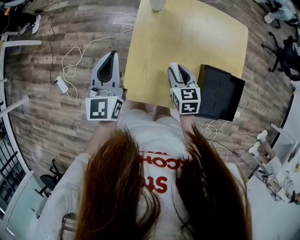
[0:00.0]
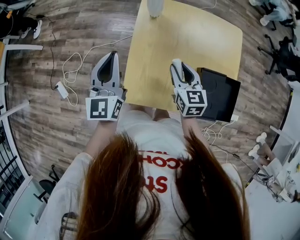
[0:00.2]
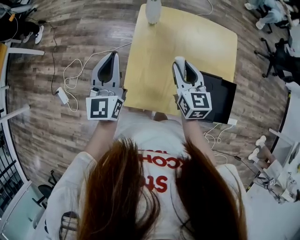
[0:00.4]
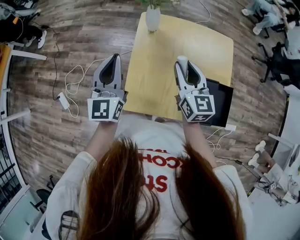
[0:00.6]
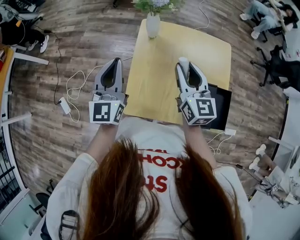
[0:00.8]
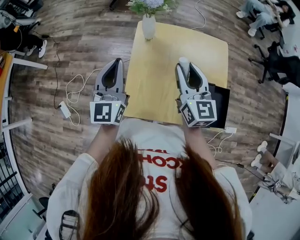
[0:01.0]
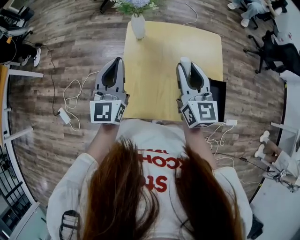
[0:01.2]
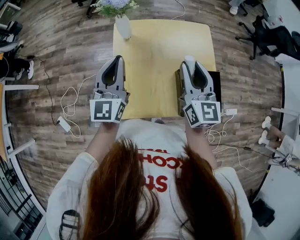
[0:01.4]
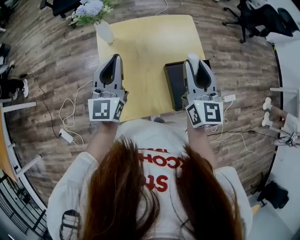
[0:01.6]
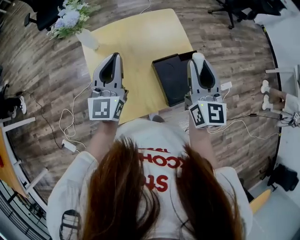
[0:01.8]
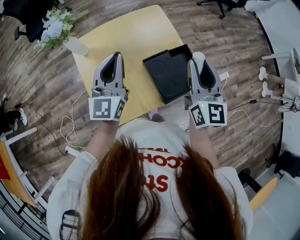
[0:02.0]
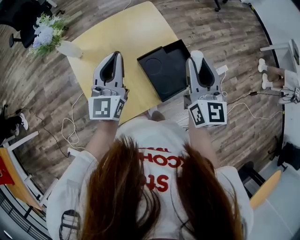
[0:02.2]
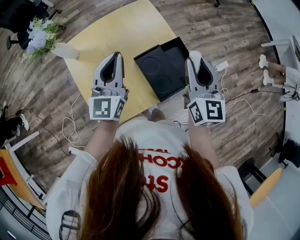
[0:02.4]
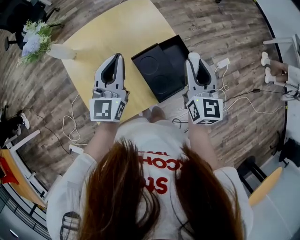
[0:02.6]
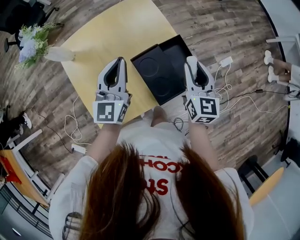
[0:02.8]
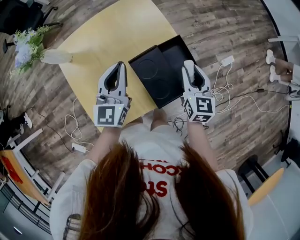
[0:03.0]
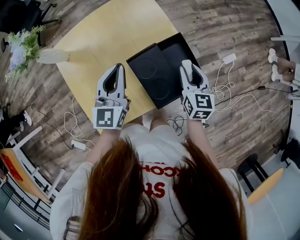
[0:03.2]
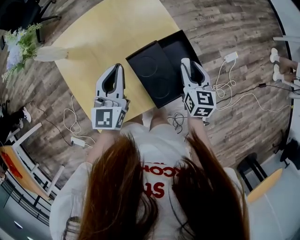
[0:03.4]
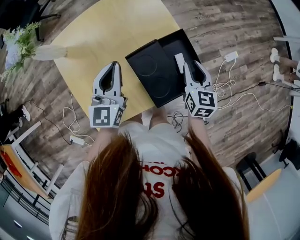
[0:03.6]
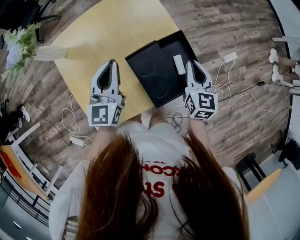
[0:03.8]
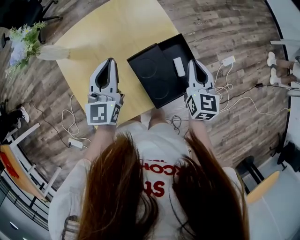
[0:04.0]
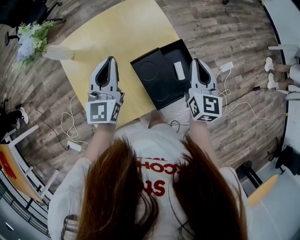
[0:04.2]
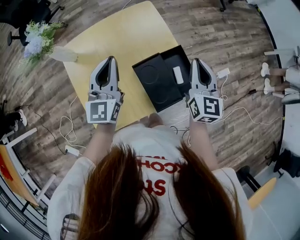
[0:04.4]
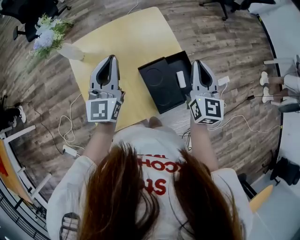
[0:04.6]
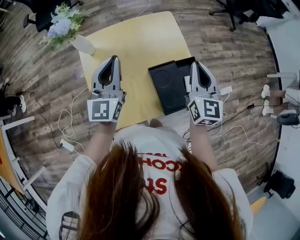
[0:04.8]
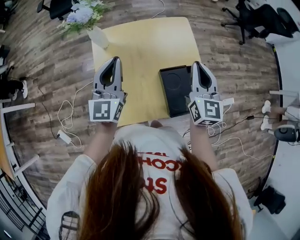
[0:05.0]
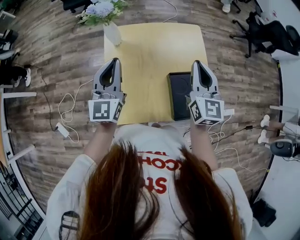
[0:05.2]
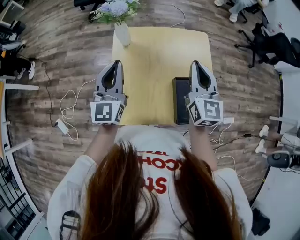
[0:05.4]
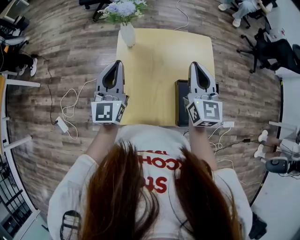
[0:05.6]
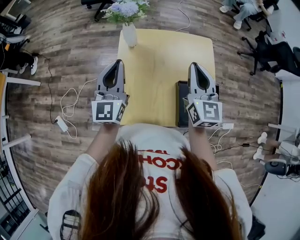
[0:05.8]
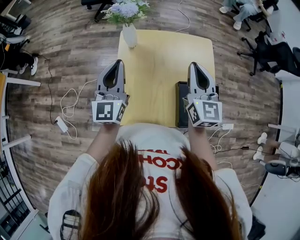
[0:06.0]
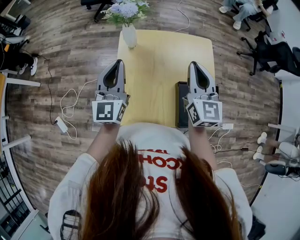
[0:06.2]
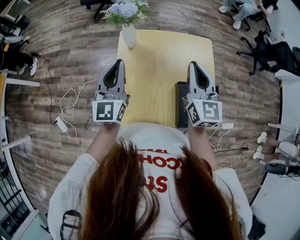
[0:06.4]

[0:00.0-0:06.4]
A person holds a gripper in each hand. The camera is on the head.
0.0 to 1.6 s: The right gripper is displaced upward by roughly 25 cm, and tilts its fingers some 40 degrees upward, while the left gripper ends up approximately 15 cm from where it was, and swivels about 30 degrees.
1.6 to 3.2 s: The left gripper travels to the right and downward by about 20 cm, and rotates some 20 degrees; the right gripper shifts some 25 cm downward and to the right, and swivels approximately 30 degrees.
3.2 to 4.8 s: The right gripper heads upward, covering some 15 cm, changes its angle by about 20 degrees, and closes up, while the left gripper shifts approximately 15 cm upward and to the left.
4.8 to 6.4 s: The right gripper goes about 15 cm to the left and forward, and turns by some 20 degrees, while the left gripper travels to the left by some 15 cm.

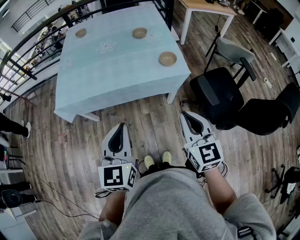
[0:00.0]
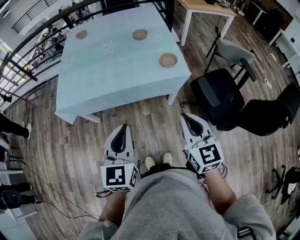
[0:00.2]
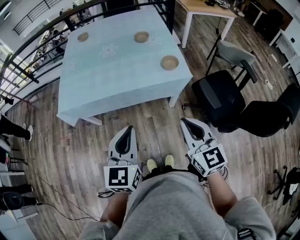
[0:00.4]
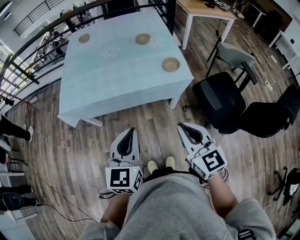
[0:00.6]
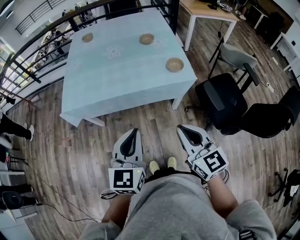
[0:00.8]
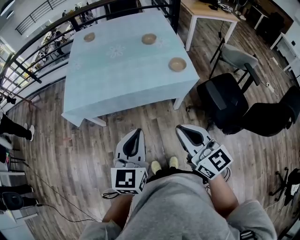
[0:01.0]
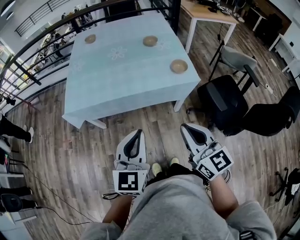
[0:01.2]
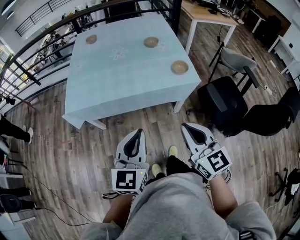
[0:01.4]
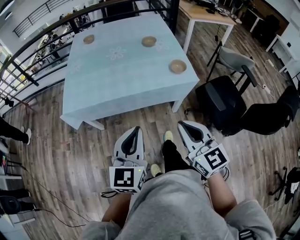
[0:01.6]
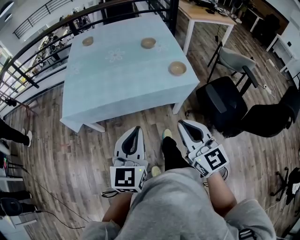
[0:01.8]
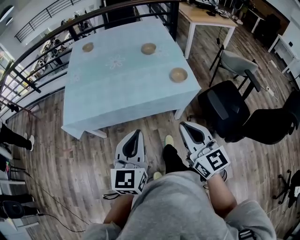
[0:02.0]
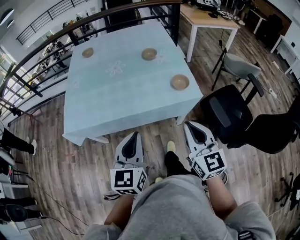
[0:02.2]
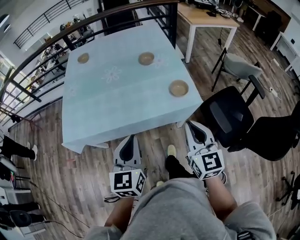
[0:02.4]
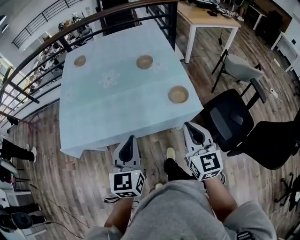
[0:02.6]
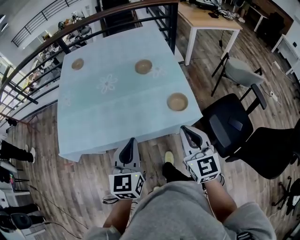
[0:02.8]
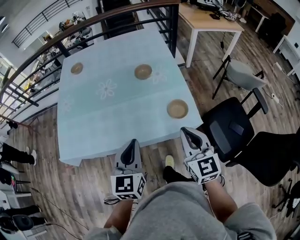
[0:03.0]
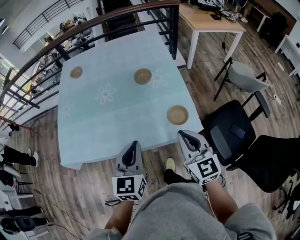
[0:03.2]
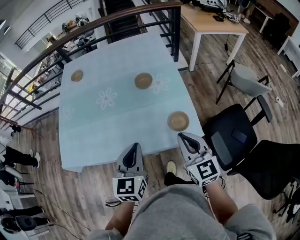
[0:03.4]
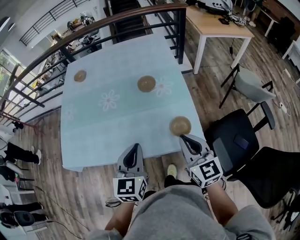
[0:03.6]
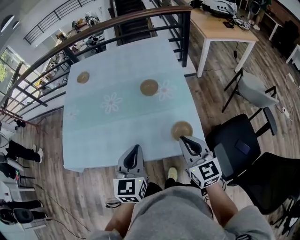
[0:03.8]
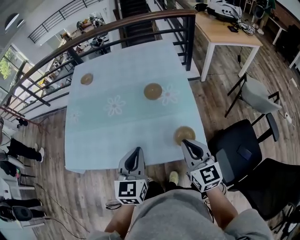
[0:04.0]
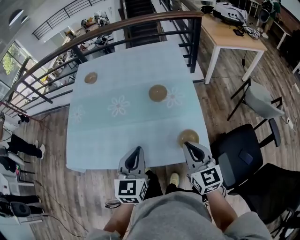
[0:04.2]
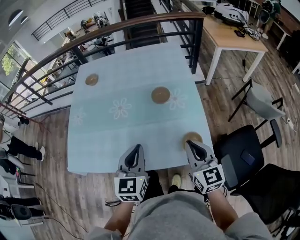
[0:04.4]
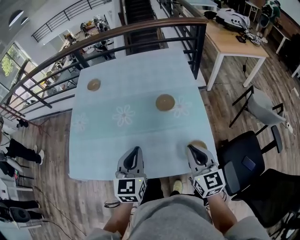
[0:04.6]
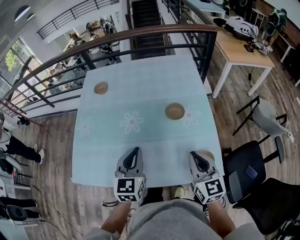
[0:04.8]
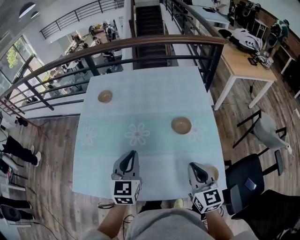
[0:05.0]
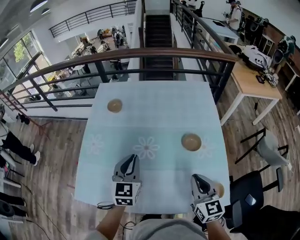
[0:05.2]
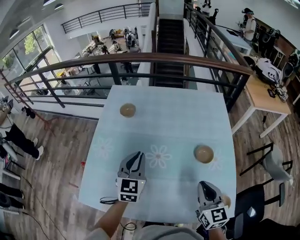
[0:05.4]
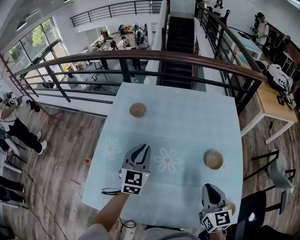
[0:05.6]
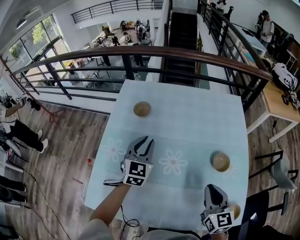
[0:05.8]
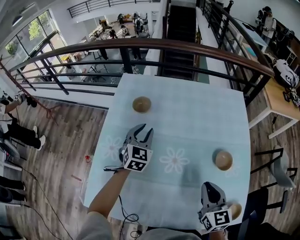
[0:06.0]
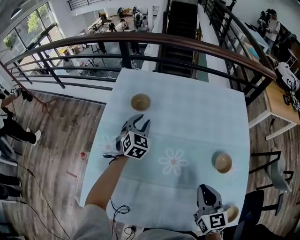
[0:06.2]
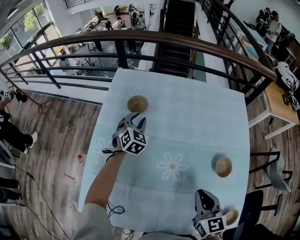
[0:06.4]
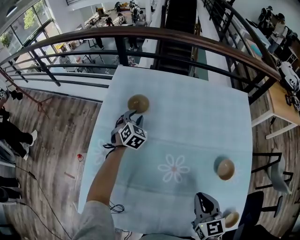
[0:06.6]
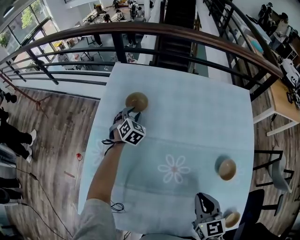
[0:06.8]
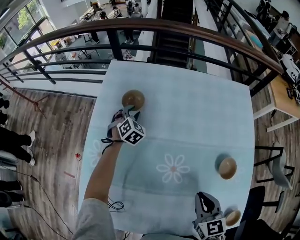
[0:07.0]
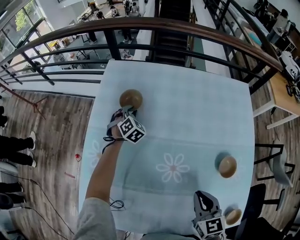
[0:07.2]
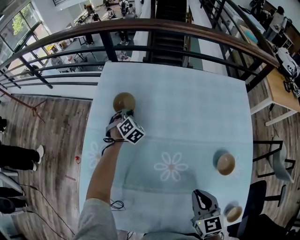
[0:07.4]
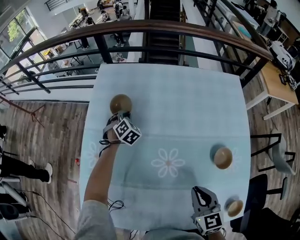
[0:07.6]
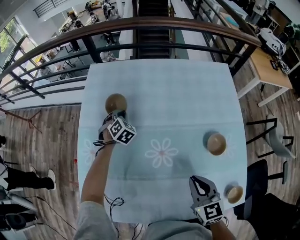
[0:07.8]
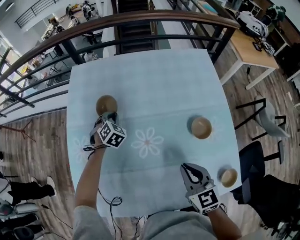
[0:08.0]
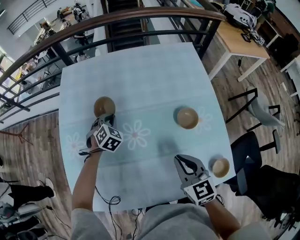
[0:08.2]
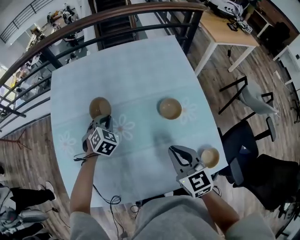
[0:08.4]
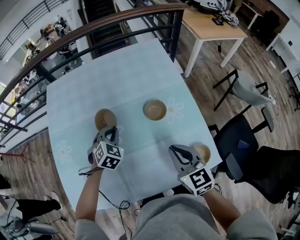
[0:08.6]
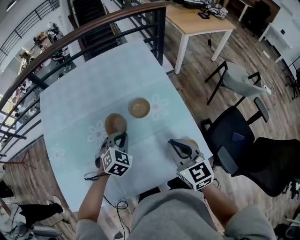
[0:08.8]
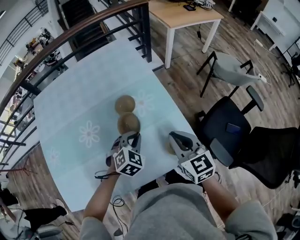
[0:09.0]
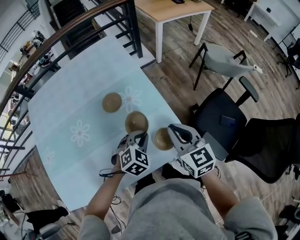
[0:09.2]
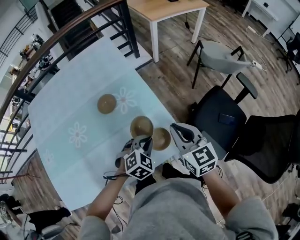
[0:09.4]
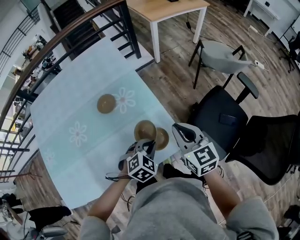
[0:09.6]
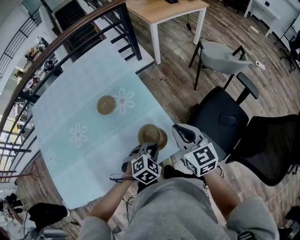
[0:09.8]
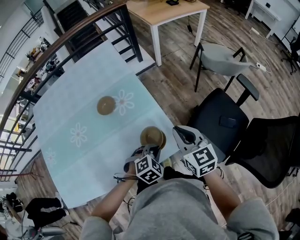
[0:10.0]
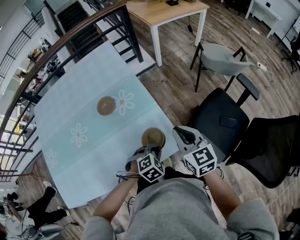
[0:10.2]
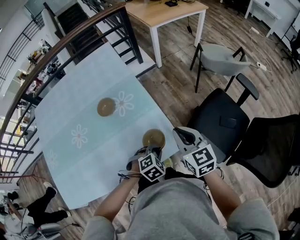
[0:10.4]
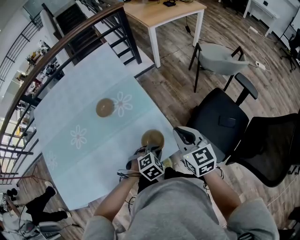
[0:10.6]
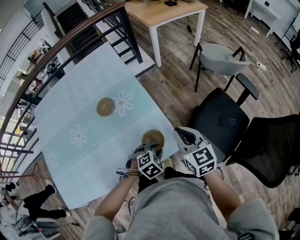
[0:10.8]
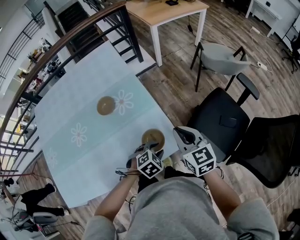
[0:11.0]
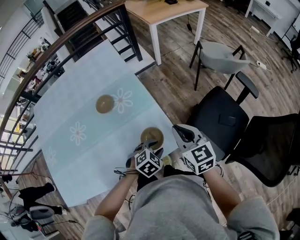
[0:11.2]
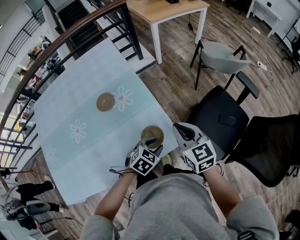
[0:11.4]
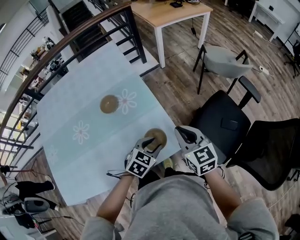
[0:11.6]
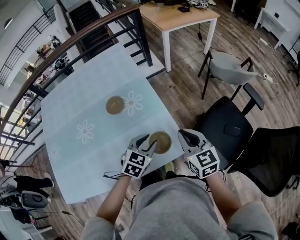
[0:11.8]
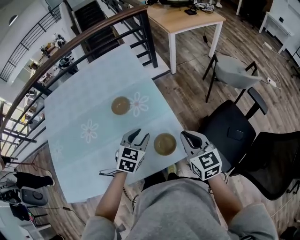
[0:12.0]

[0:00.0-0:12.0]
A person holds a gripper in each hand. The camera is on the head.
0.0 to 1.6 s: The right gripper heads to the left, covering about 10 cm.
1.6 to 3.0 s: Both grippers move forward, about 30 cm.
3.0 to 4.4 s: The grippers both shift forward by roughly 15 cm.
4.4 to 6.0 s: The right gripper heads forward and to the left, covering about 30 cm. The left gripper moves forward and to the left, roughly 50 cm, and opens up.
6.0 to 7.6 s: The right gripper heads downward, covering about 5 cm. The left gripper shifts approximately 20 cm downward and forward, rotates some 40 degrees, and closes.
7.6 to 9.0 s: The right gripper shifts by about 30 cm, and turns by roughly 20 degrees. The left gripper moves approximately 60 cm, and turns by some 40 degrees.
9.0 to 10.4 s: The right gripper travels to the right by approximately 15 cm, while the left gripper heads to the right, downward and backward, covering about 25 cm, and rotates about 20 degrees.
10.4 to 12.0 s: The left gripper goes about 20 cm to the left, upward and forward, rotates roughly 40 degrees, and opens.

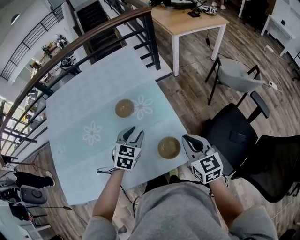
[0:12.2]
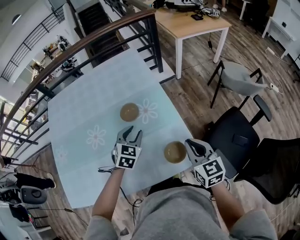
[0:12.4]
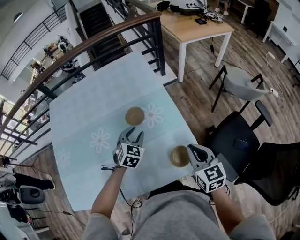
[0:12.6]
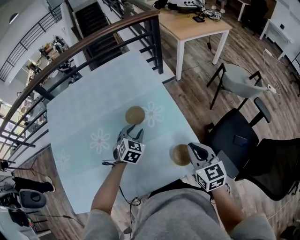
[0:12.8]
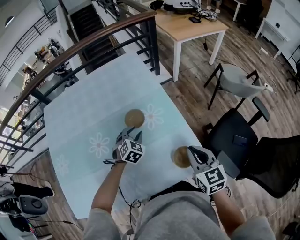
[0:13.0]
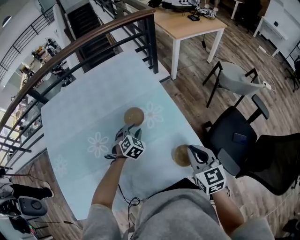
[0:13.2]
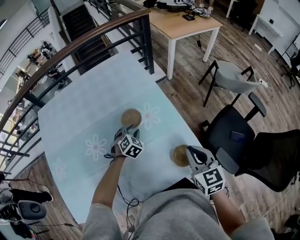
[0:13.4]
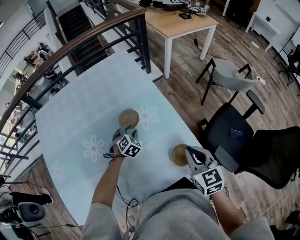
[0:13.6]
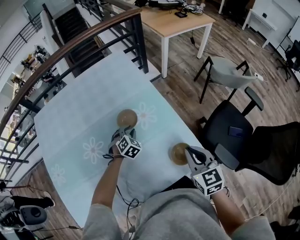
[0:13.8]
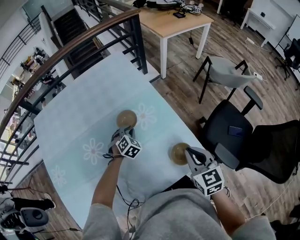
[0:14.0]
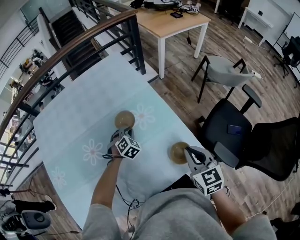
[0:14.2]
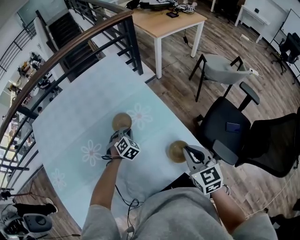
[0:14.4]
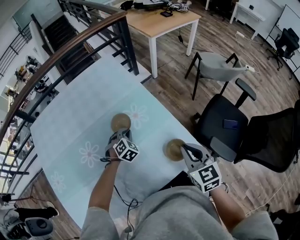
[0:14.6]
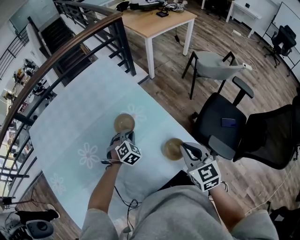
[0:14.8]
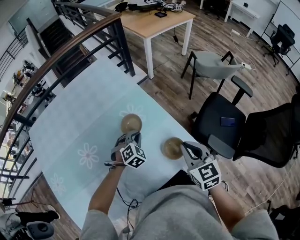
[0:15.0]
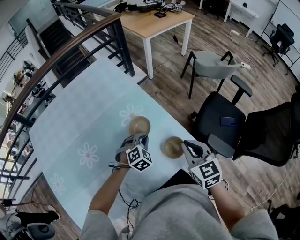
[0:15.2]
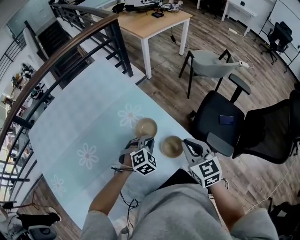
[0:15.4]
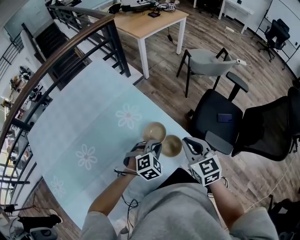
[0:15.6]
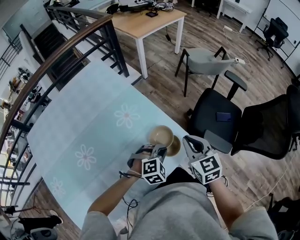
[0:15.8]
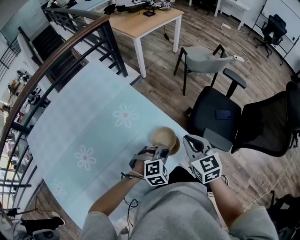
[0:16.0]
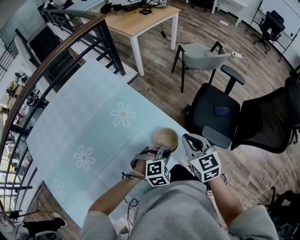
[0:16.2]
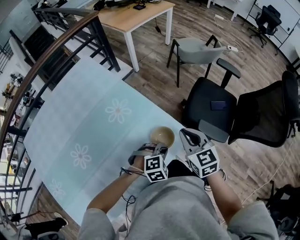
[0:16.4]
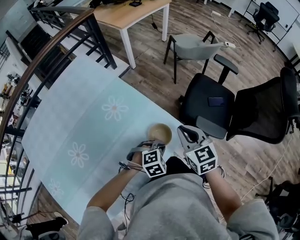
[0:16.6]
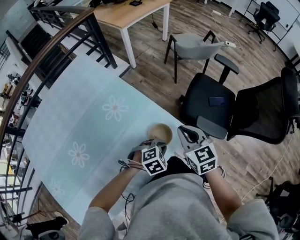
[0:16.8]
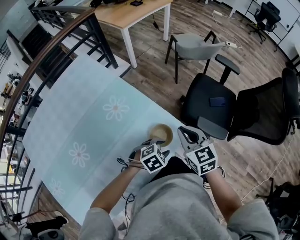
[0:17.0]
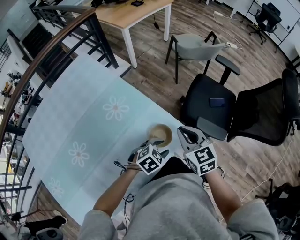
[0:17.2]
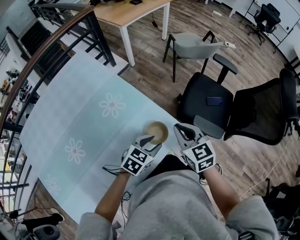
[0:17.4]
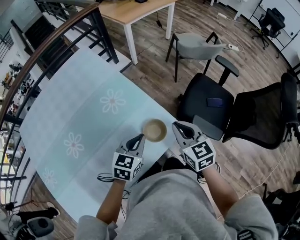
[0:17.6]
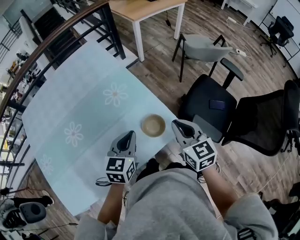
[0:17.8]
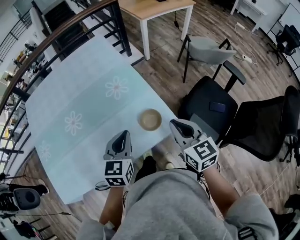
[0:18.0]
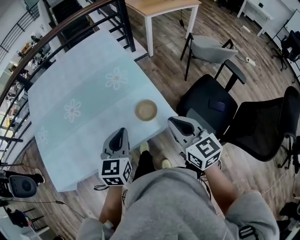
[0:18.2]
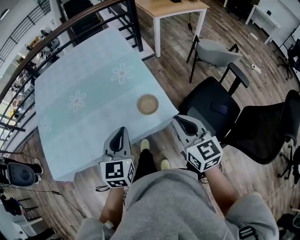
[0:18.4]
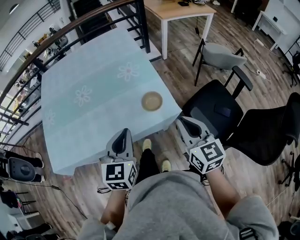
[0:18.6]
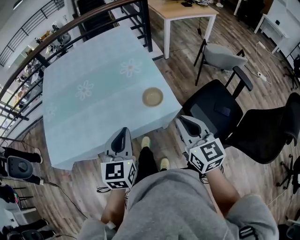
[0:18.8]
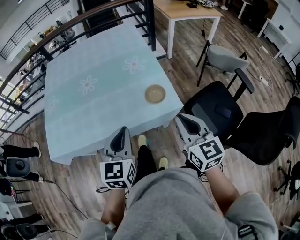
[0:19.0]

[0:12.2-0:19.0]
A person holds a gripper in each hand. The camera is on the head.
12.2 to 13.6 s: The left gripper heads downward, forward and to the left, covering approximately 20 cm, and turns by approximately 30 degrees; the right gripper shifts some 5 cm to the left.
13.6 to 15.0 s: The left gripper shifts about 10 cm to the right and backward, and closes its fingers.
15.0 to 16.2 s: The left gripper shifts roughly 25 cm to the right and backward, and changes its angle by about 40 degrees.
16.2 to 17.6 s: The left gripper ends up about 10 cm from where it was, rolls counterclockwise, seen from behind, by some 50 degrees, and opens, then closes once more.
17.6 to 19.0 s: The left gripper changes place by approximately 25 cm, and rotates approximately 50 degrees, while the right gripper moves roughly 15 cm, and rotates some 30 degrees.
